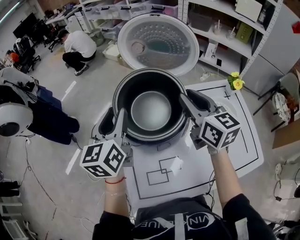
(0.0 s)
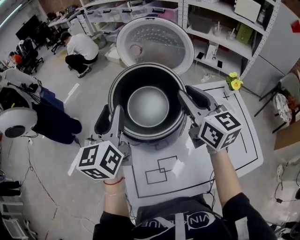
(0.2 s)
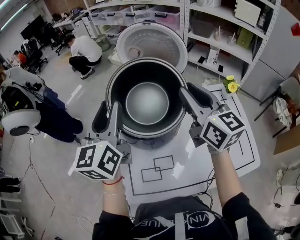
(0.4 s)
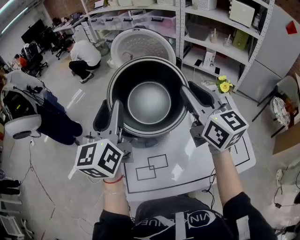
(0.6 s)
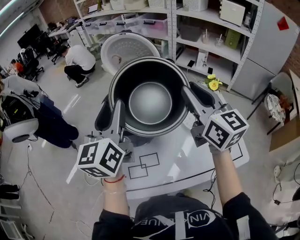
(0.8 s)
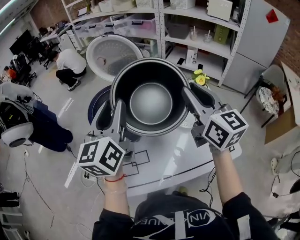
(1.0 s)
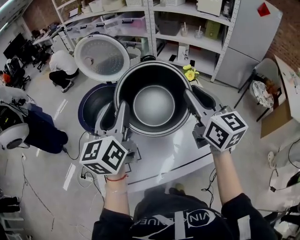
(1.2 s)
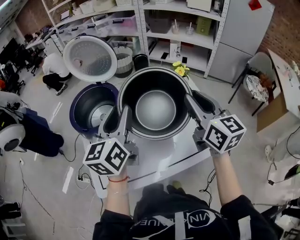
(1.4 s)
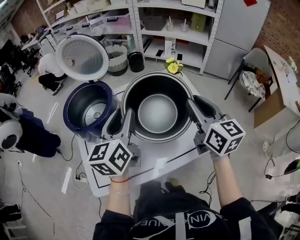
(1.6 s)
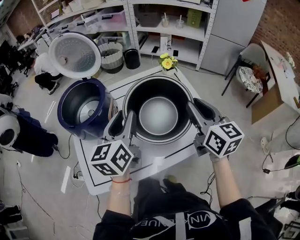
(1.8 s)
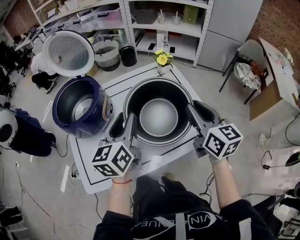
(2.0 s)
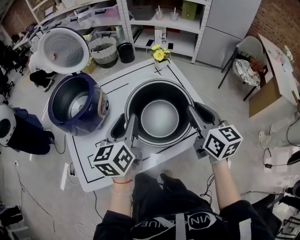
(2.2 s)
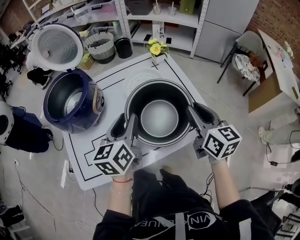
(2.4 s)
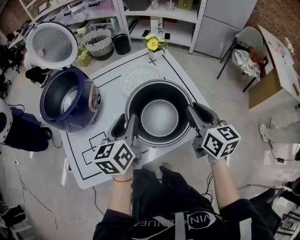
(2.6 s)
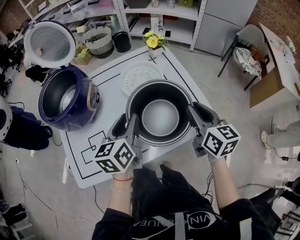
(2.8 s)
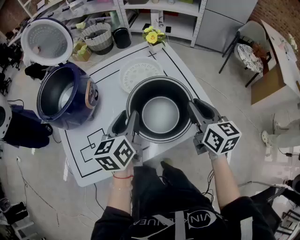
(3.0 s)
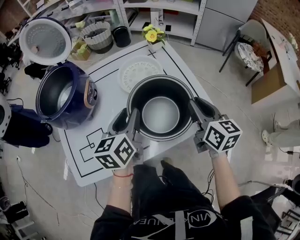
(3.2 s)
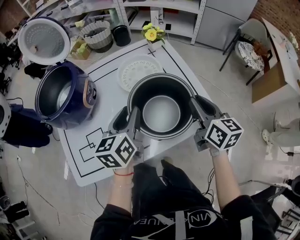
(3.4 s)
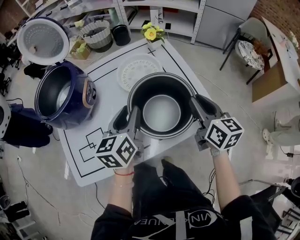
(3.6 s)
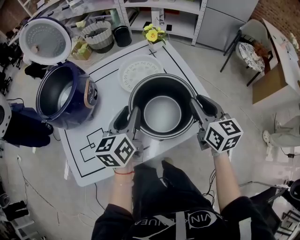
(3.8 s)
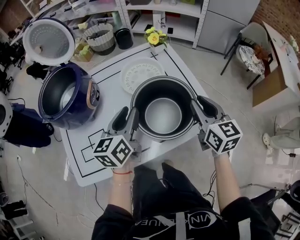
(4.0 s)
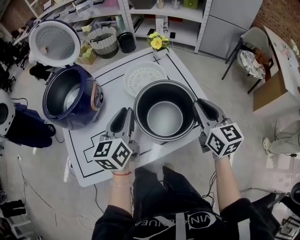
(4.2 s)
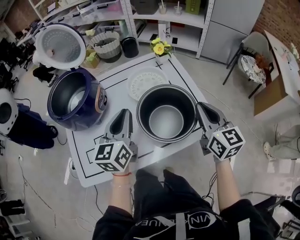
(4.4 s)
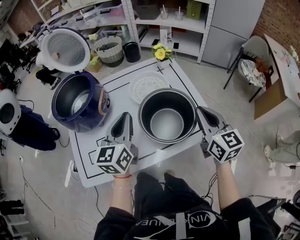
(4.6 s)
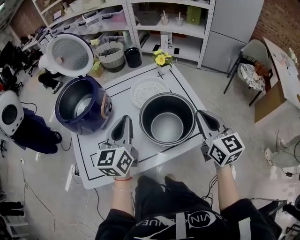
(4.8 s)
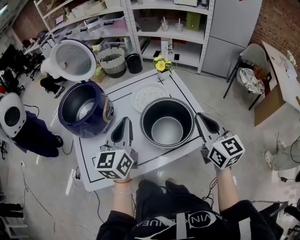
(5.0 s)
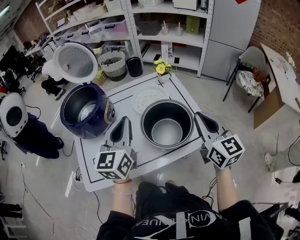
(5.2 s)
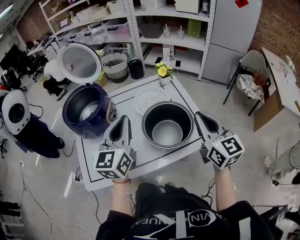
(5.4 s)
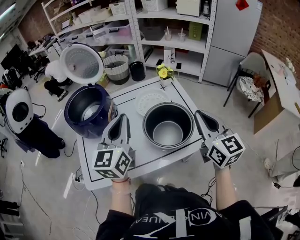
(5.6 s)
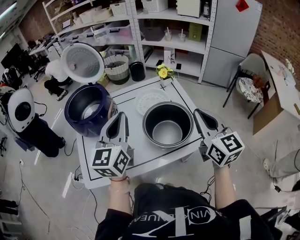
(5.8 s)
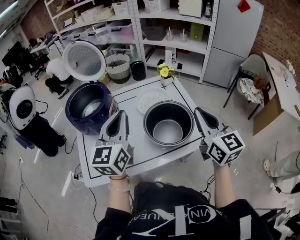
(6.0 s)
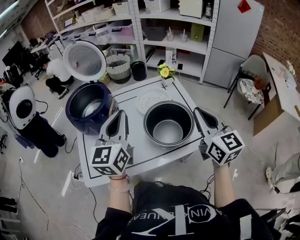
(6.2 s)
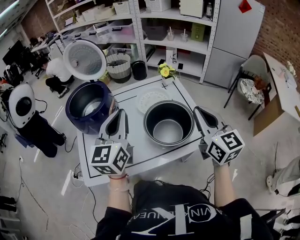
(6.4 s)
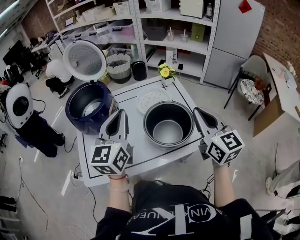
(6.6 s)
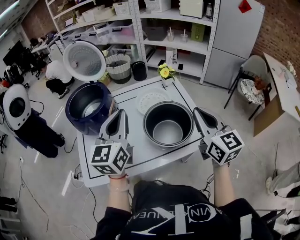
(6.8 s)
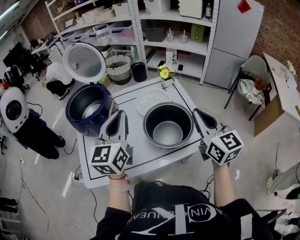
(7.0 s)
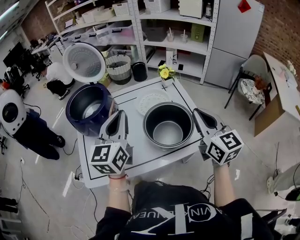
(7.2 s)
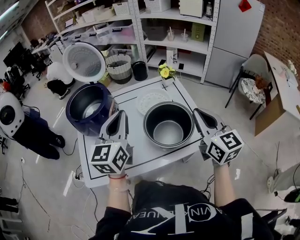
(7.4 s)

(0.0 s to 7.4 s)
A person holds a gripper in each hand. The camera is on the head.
0.0 s - 1.4 s: The two grippers go roughly 30 cm to the right and backward.
1.4 s - 3.0 s: The grippers both shift downward and to the right by roughly 25 cm. The left gripper swivels approximately 20 degrees.
3.0 s - 4.4 s: The left gripper heads upward, covering about 5 cm, and closes up.
4.4 s - 6.0 s: Both grippers travel together upward, some 10 cm.
6.0 s - 7.4 s: The grippers stay close to where they were, moving slightly.

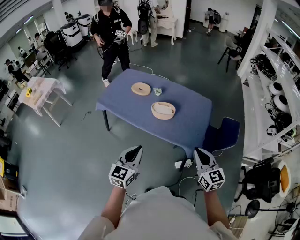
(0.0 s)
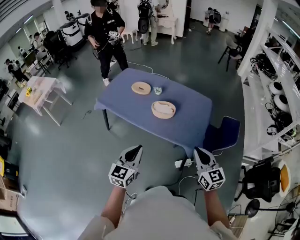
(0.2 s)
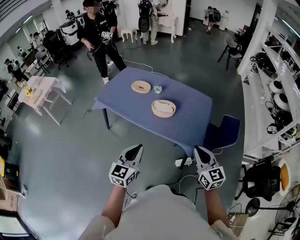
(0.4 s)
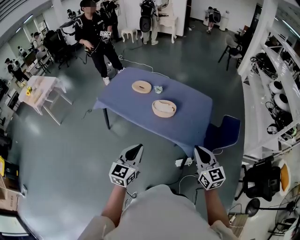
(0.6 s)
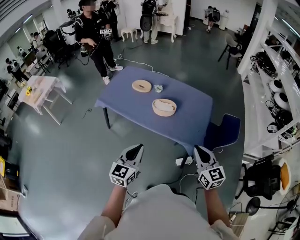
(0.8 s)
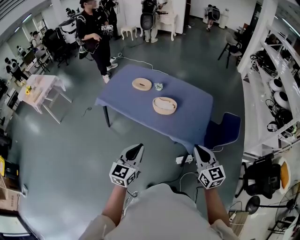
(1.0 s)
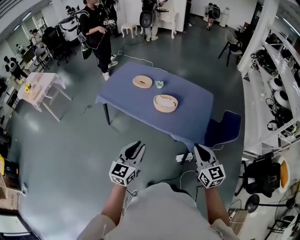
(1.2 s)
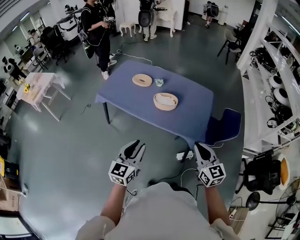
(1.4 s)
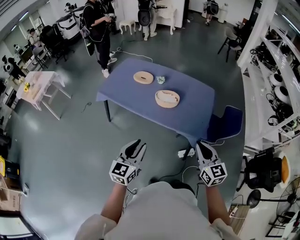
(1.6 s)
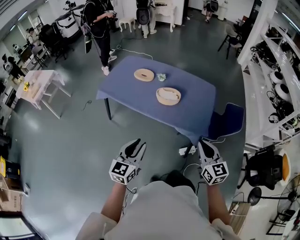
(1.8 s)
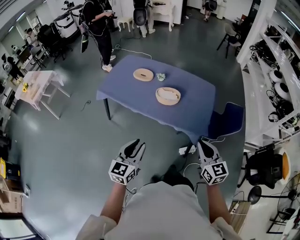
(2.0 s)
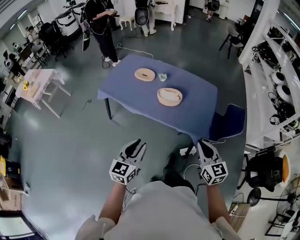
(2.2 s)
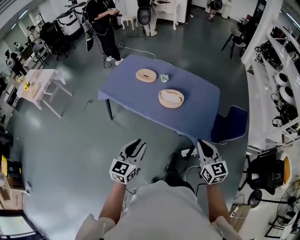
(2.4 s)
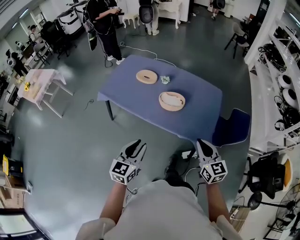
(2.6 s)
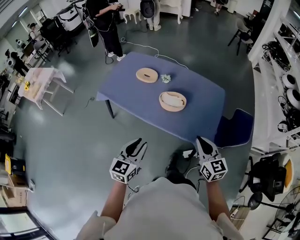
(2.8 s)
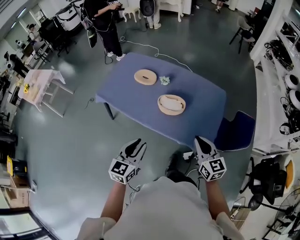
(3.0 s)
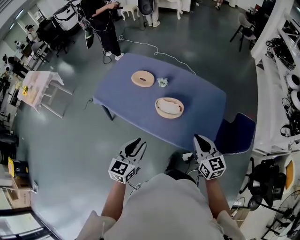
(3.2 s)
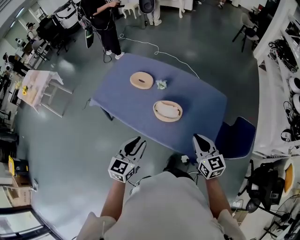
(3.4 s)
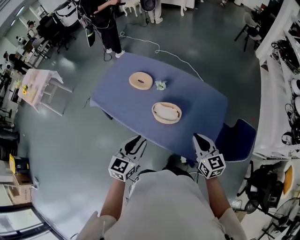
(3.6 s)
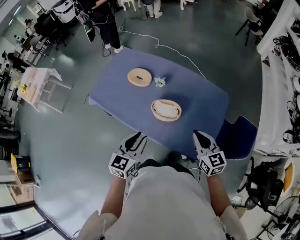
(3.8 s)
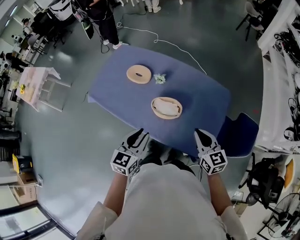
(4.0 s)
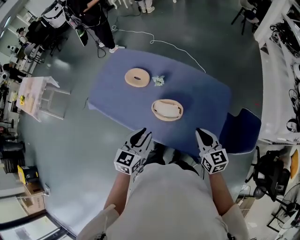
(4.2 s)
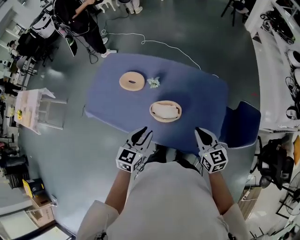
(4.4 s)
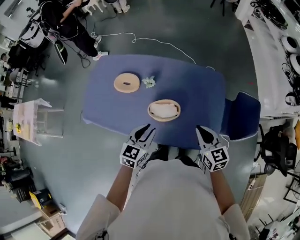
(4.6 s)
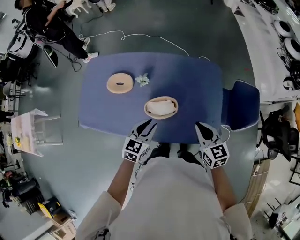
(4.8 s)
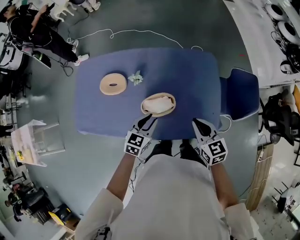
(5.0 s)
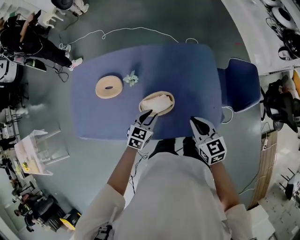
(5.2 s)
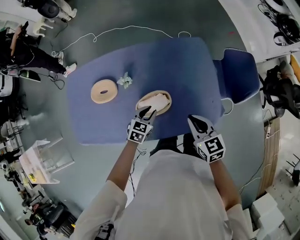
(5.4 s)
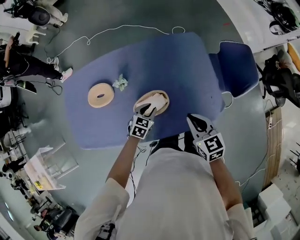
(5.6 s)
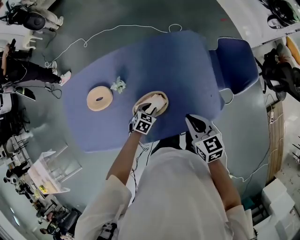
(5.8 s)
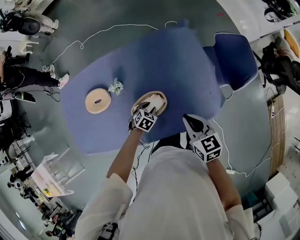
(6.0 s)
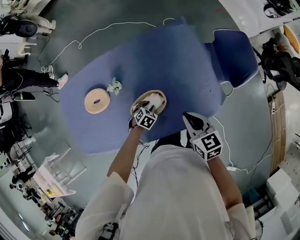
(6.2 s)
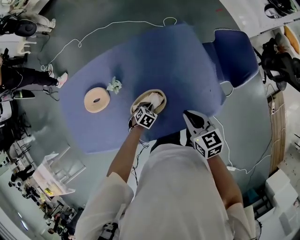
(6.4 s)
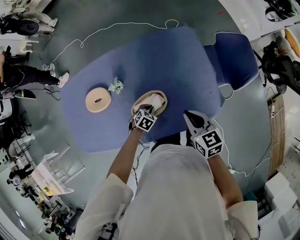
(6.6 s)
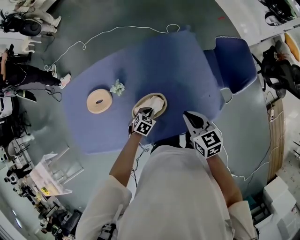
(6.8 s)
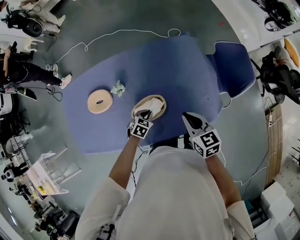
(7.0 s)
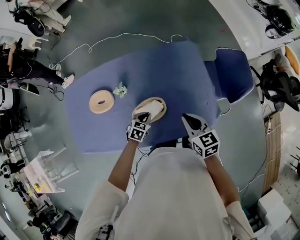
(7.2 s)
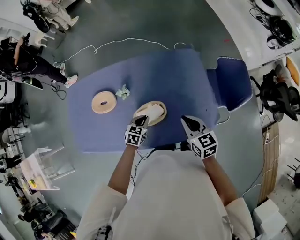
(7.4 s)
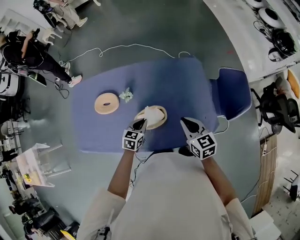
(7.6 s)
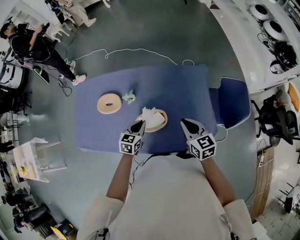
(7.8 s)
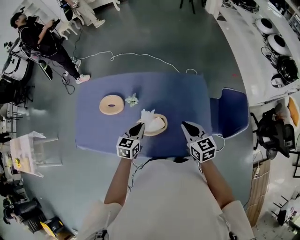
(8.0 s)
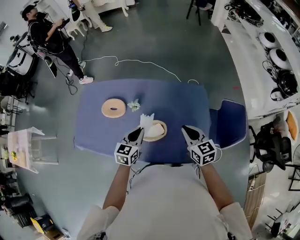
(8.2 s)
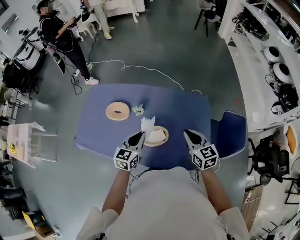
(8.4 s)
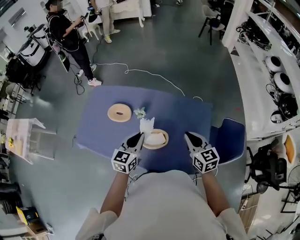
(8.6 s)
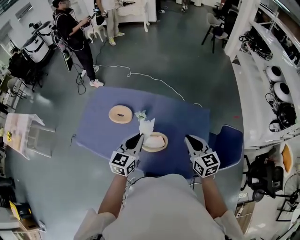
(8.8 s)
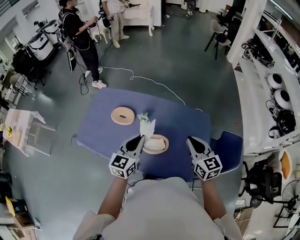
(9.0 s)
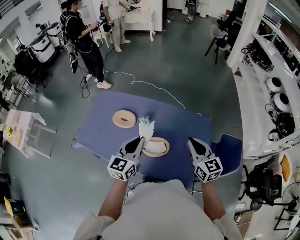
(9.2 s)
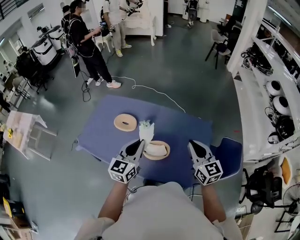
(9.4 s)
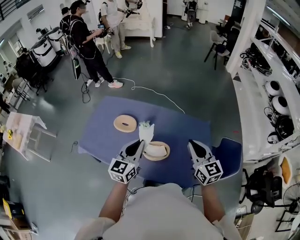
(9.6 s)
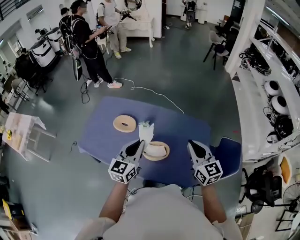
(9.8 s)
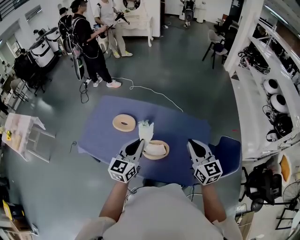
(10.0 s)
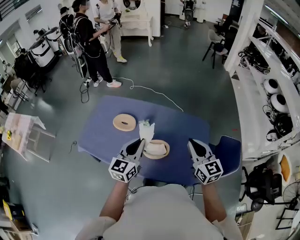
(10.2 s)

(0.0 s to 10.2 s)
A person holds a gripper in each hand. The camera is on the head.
0.0 s - 1.4 s: The left gripper opens its fingers.
1.4 s - 3.0 s: The two grippers go about 20 cm forward.
3.0 s - 4.4 s: The two grippers go approximately 20 cm forward.
4.4 s - 5.8 s: The left gripper travels downward by about 30 cm, and points its fingers approximately 40 degrees further downward. The right gripper goes some 10 cm downward, and turns by some 30 degrees.
5.8 s - 7.2 s: The left gripper closes its fingers.
7.2 s - 8.8 s: The left gripper heads upward, covering approximately 35 cm, and points its fingers roughly 40 degrees further upward. Meanwhile the right gripper shifts roughly 15 cm upward, and rotates roughly 30 degrees.
8.8 s - 10.2 s: Both grippers travel together upward, roughly 5 cm.

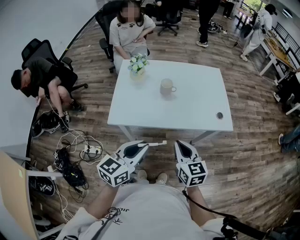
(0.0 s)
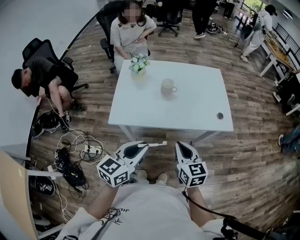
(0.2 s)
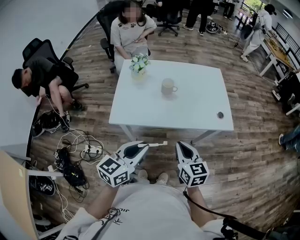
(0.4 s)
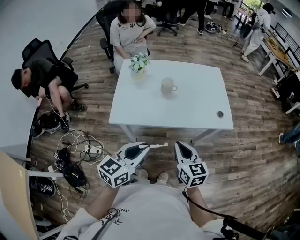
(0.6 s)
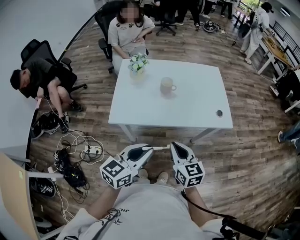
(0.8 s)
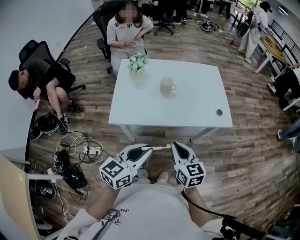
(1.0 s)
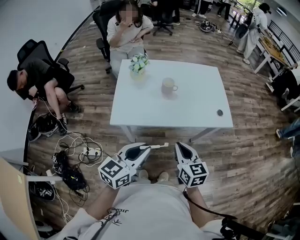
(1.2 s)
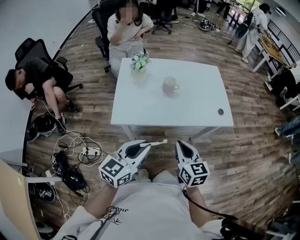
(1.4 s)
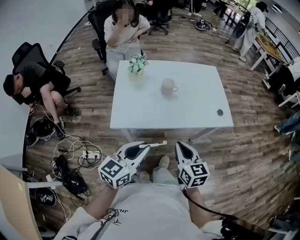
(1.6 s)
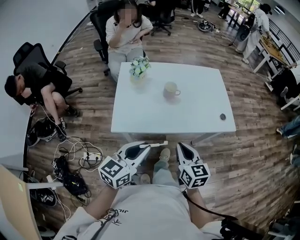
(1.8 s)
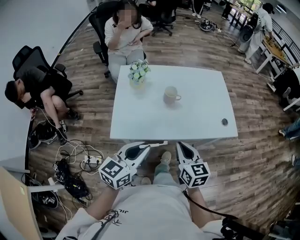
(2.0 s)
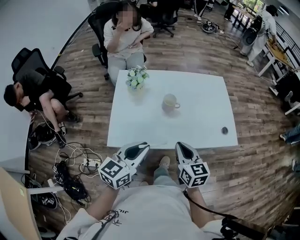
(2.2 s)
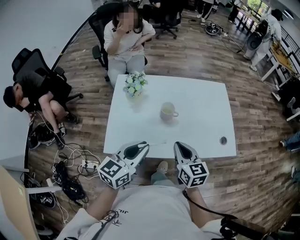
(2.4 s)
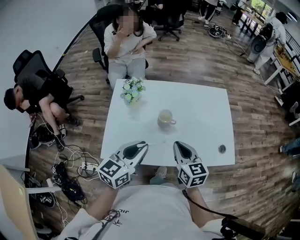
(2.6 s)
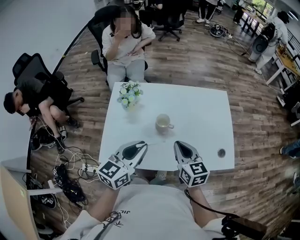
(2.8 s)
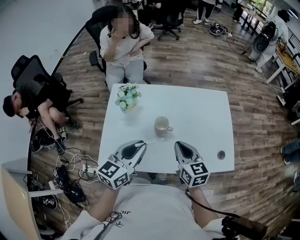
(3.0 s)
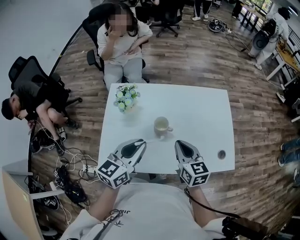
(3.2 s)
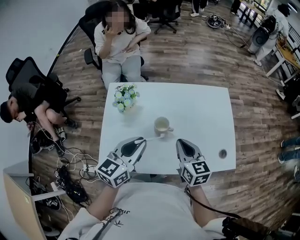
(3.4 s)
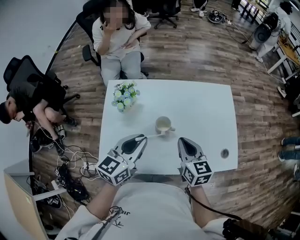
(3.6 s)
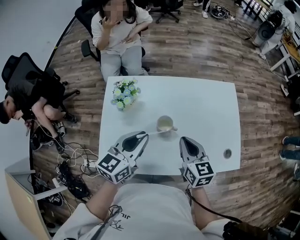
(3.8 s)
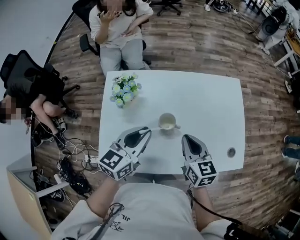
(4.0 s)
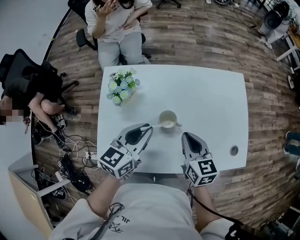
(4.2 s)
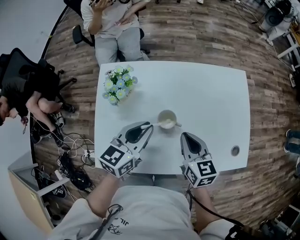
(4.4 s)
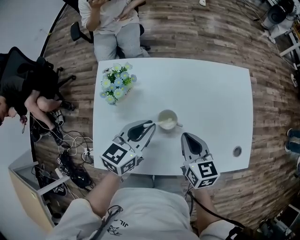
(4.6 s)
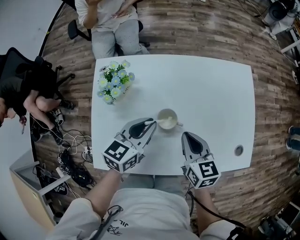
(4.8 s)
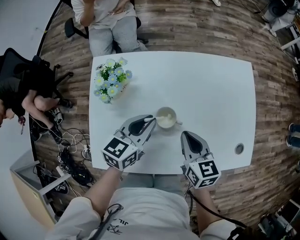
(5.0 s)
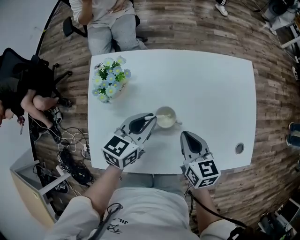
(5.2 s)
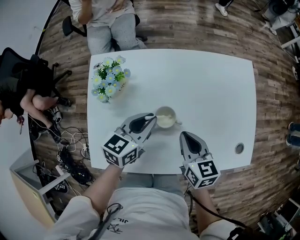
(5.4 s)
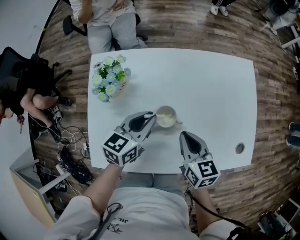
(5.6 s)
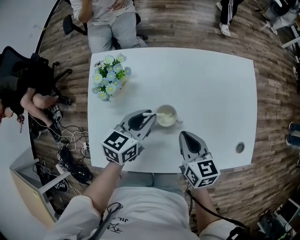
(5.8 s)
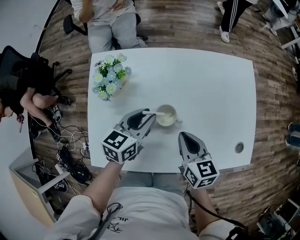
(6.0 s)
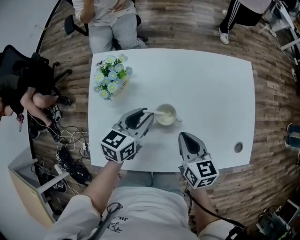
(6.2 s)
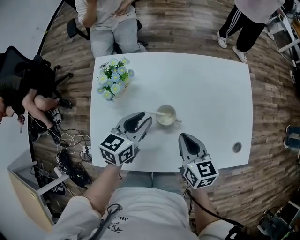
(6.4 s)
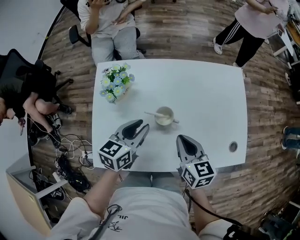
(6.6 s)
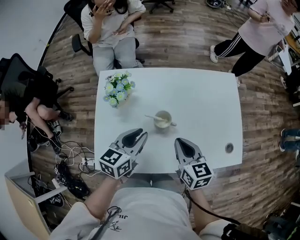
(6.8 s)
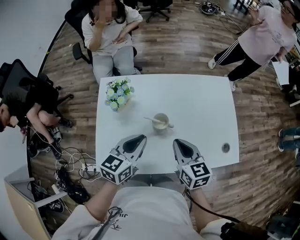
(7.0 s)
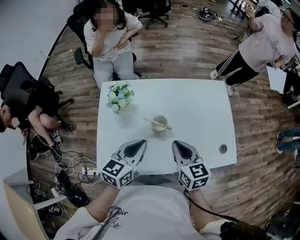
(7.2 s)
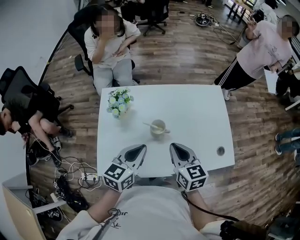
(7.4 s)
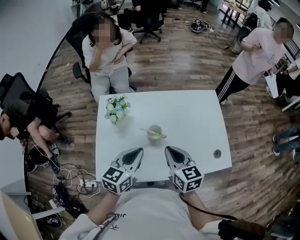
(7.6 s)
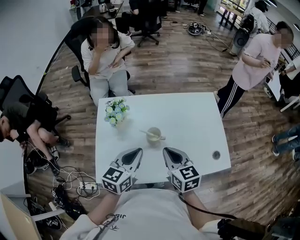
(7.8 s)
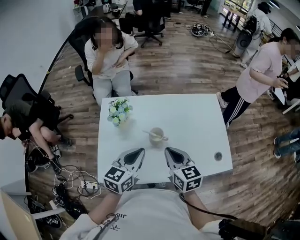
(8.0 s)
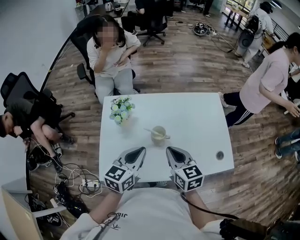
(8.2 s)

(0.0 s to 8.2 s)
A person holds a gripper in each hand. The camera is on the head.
0.0 s - 1.6 s: The grippers move only a little.
1.6 s - 3.2 s: The grippers both shift forward by about 30 cm.
3.2 s - 5.0 s: The left gripper travels downward and forward by approximately 20 cm, while the right gripper is displaced downward and forward by about 10 cm.
5.0 s - 6.6 s: The grippers make only small movements.
6.6 s - 8.2 s: The left gripper travels upward and backward by some 15 cm, and closes its fingers, while the right gripper moves upward, roughly 10 cm.
